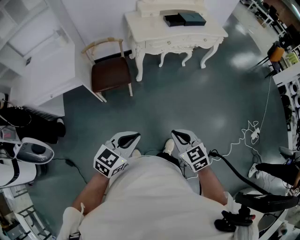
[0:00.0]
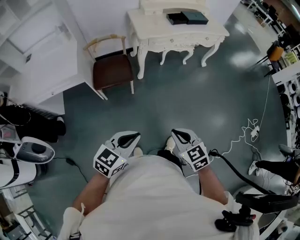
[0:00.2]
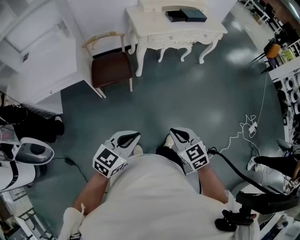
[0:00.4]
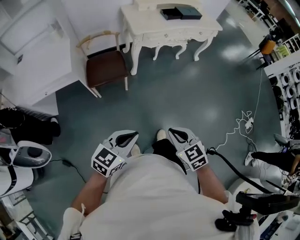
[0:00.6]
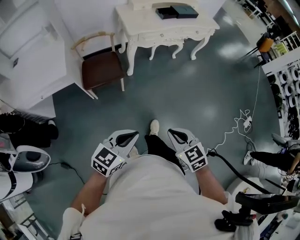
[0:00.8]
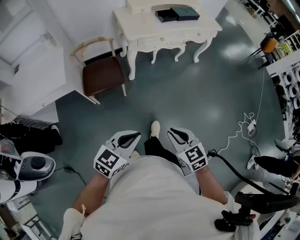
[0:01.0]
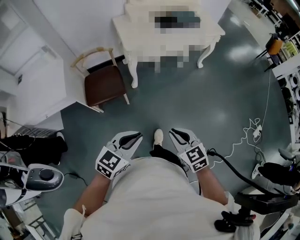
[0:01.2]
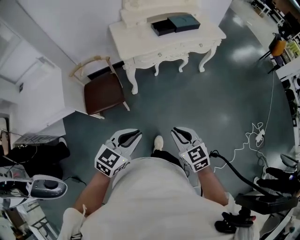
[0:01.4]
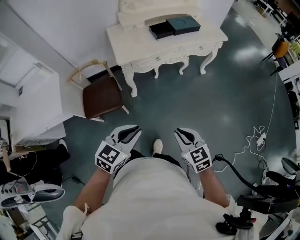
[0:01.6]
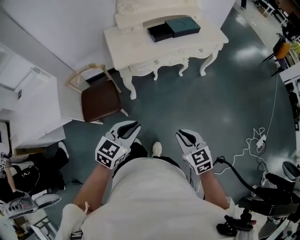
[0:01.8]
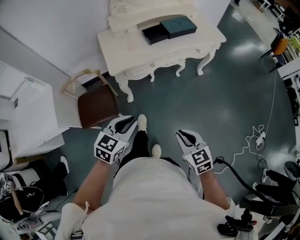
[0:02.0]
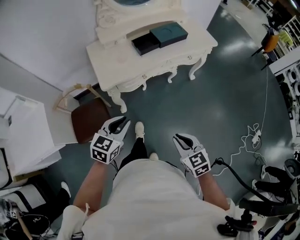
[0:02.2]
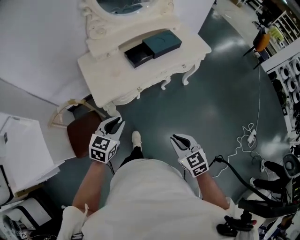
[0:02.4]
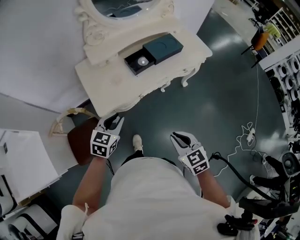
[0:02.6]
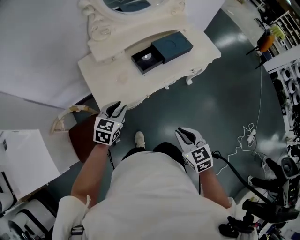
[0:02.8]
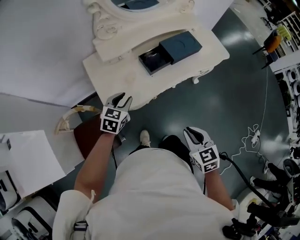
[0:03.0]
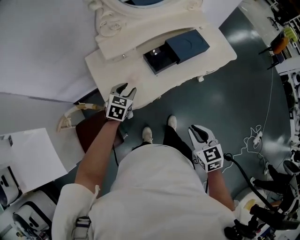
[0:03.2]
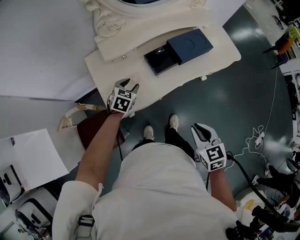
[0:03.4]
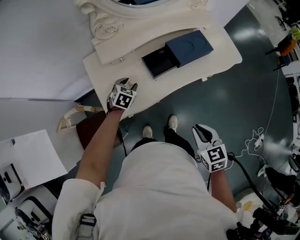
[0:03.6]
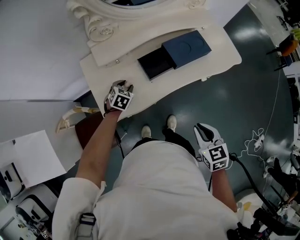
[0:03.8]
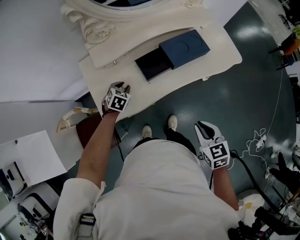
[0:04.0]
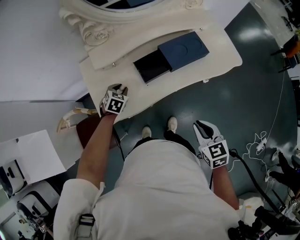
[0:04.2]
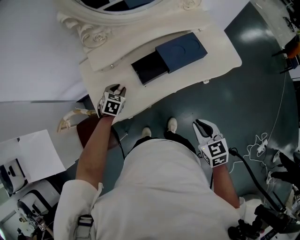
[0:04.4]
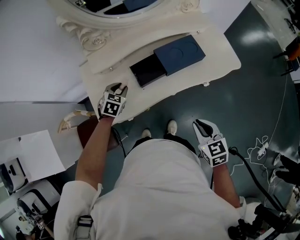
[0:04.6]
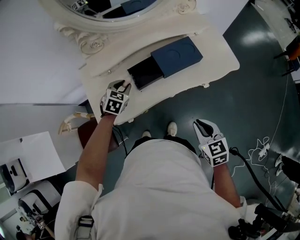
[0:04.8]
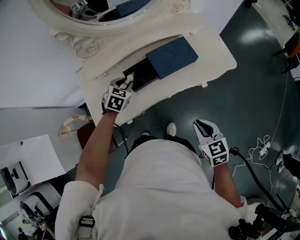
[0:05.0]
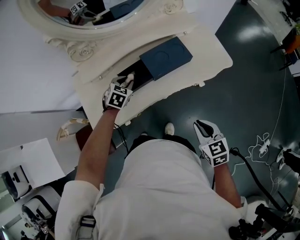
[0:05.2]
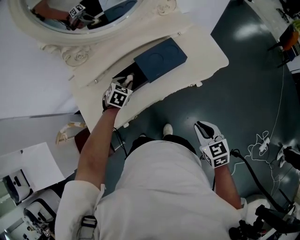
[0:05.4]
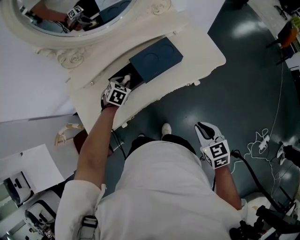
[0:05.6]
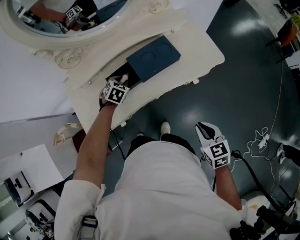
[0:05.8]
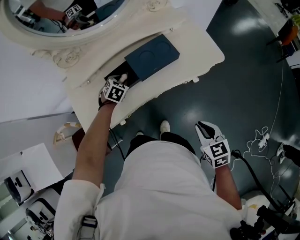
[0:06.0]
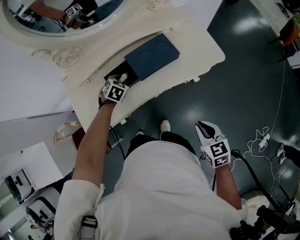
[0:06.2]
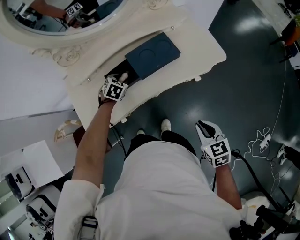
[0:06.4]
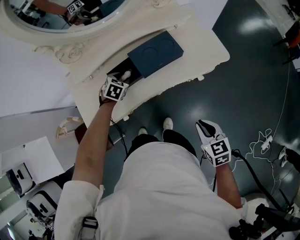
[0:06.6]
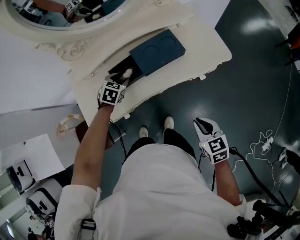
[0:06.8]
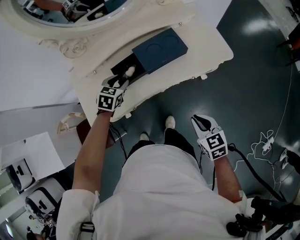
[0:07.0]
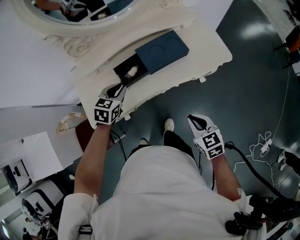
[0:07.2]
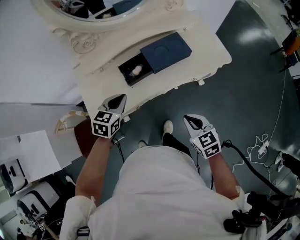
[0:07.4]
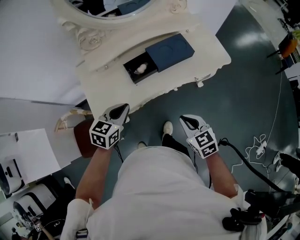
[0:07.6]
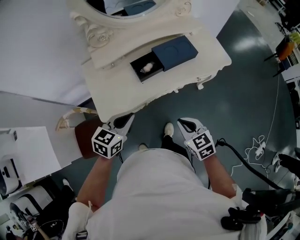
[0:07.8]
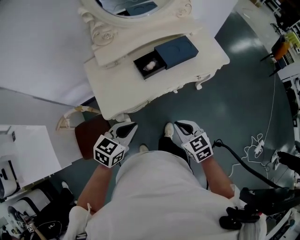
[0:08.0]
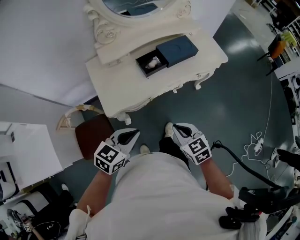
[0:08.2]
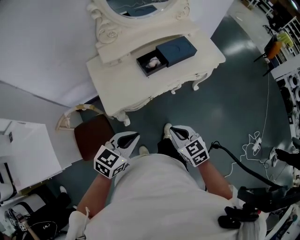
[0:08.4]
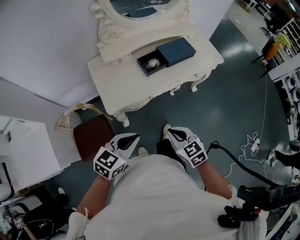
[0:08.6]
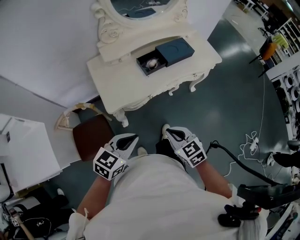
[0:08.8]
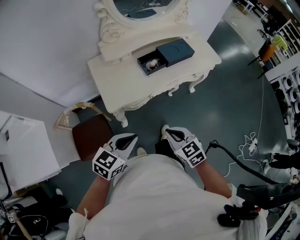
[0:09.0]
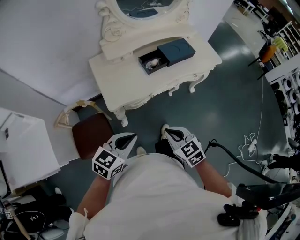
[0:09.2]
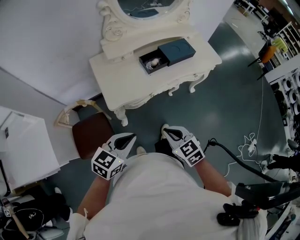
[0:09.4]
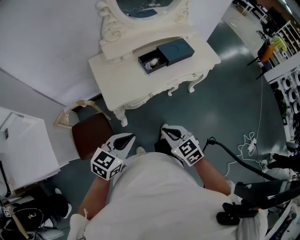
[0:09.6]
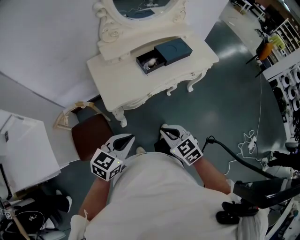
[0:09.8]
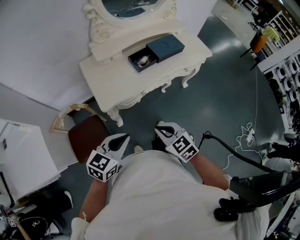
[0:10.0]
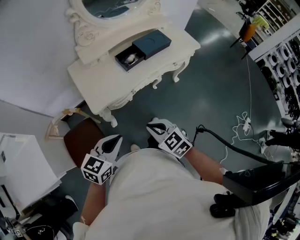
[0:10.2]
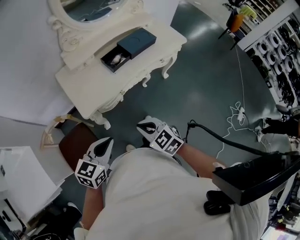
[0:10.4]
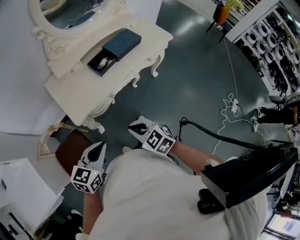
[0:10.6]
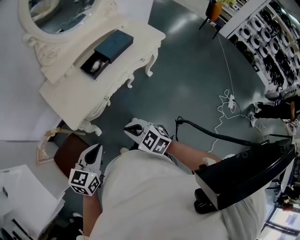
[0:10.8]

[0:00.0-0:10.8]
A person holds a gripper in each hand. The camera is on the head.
0:00.0 to 0:01.6: Both grippers travel together forward, about 30 cm.
0:01.6 to 0:03.0: The two grippers go roughly 50 cm forward.
0:03.0 to 0:04.6: The left gripper travels forward and to the right by some 15 cm; the right gripper travels to the right and forward by approximately 25 cm.
0:04.6 to 0:06.2: The right gripper heads to the right, covering approximately 15 cm; the left gripper goes about 15 cm to the right and forward.
0:06.2 to 0:07.8: The right gripper heads to the left, covering roughly 20 cm, while the left gripper heads backward and upward, covering roughly 35 cm, angles its fingers upward, by approximately 30 degrees, and closes up.
0:07.8 to 0:09.2: The right gripper shifts roughly 20 cm backward and to the left. Meanwhile the left gripper is displaced backward by approximately 20 cm.
0:09.2 to 0:10.8: The grippers move only a little.

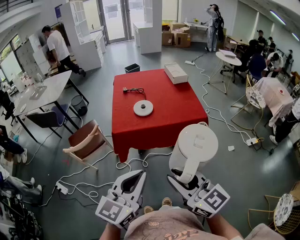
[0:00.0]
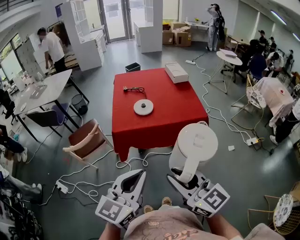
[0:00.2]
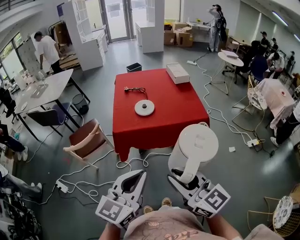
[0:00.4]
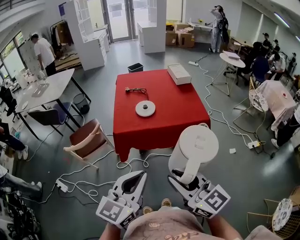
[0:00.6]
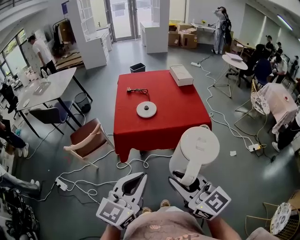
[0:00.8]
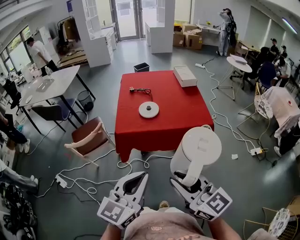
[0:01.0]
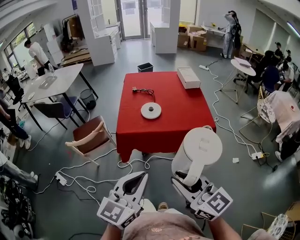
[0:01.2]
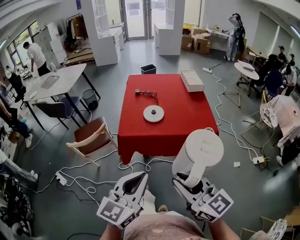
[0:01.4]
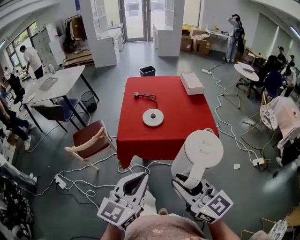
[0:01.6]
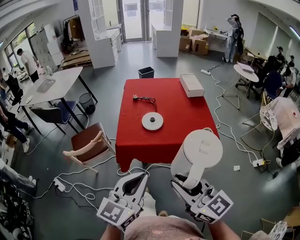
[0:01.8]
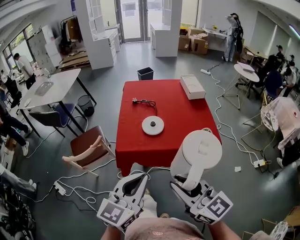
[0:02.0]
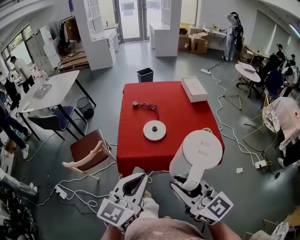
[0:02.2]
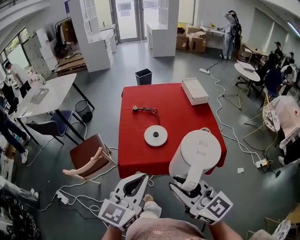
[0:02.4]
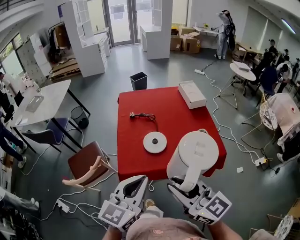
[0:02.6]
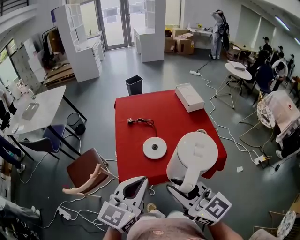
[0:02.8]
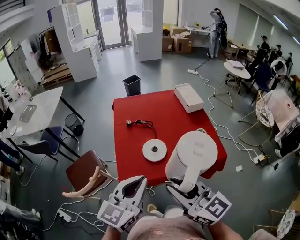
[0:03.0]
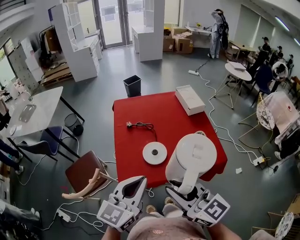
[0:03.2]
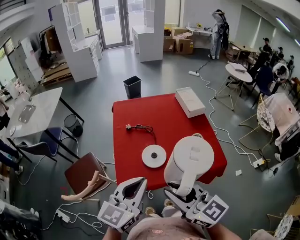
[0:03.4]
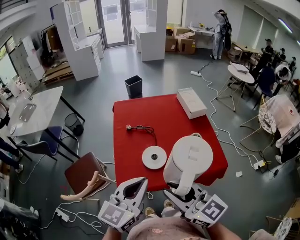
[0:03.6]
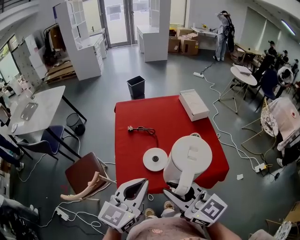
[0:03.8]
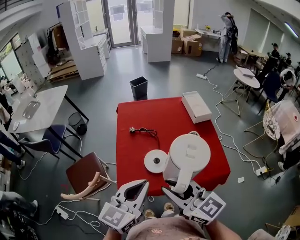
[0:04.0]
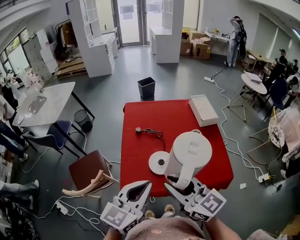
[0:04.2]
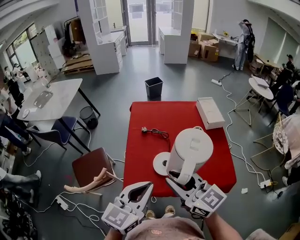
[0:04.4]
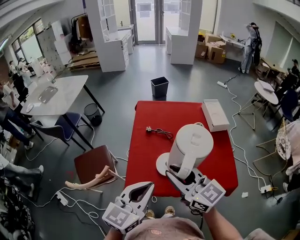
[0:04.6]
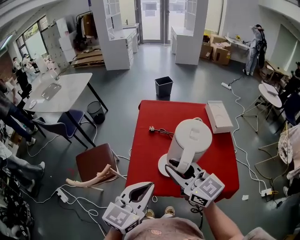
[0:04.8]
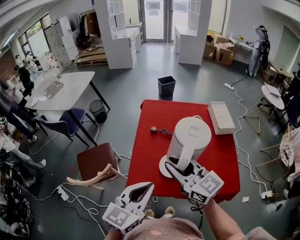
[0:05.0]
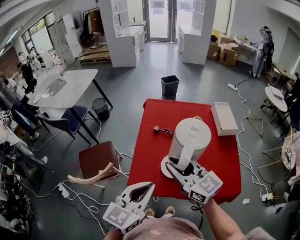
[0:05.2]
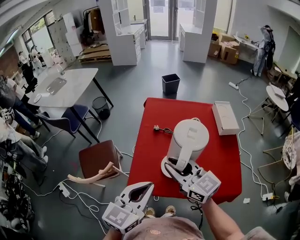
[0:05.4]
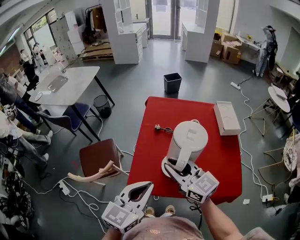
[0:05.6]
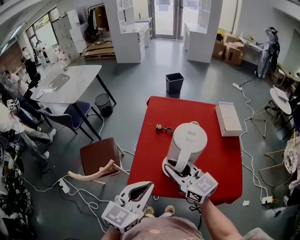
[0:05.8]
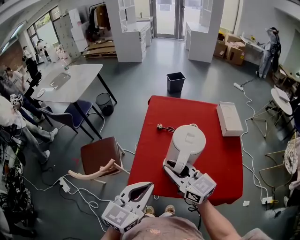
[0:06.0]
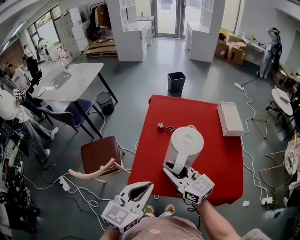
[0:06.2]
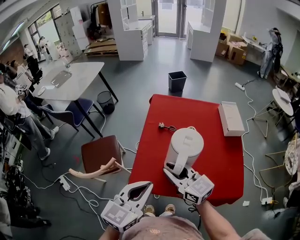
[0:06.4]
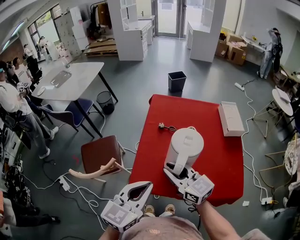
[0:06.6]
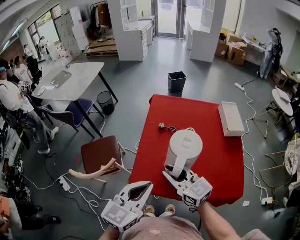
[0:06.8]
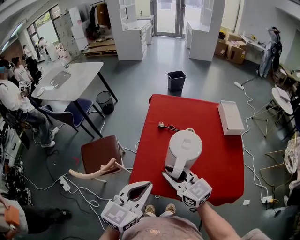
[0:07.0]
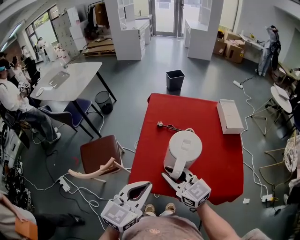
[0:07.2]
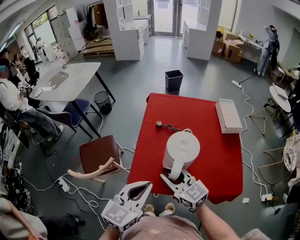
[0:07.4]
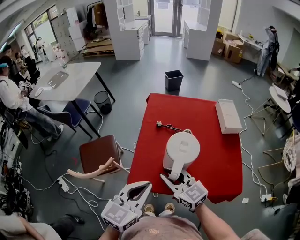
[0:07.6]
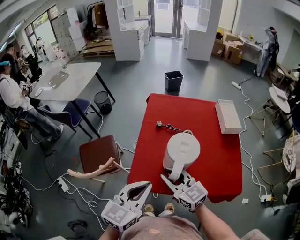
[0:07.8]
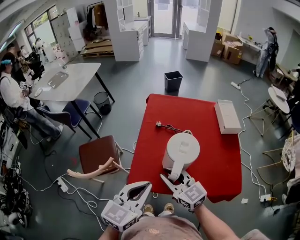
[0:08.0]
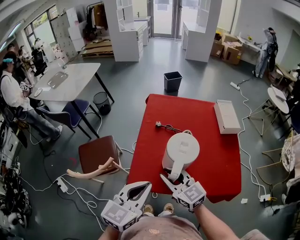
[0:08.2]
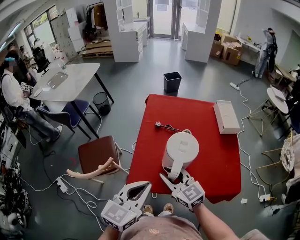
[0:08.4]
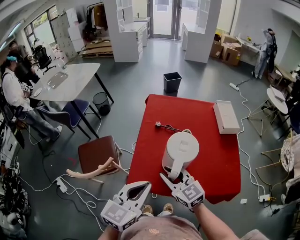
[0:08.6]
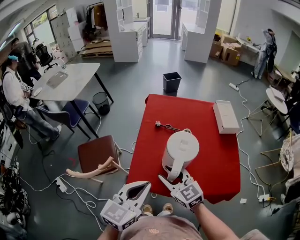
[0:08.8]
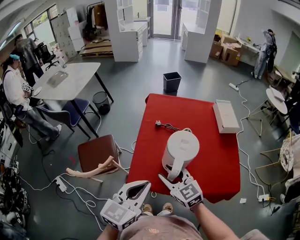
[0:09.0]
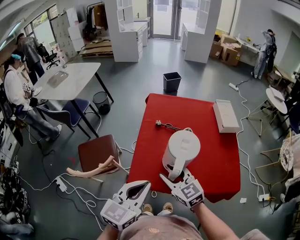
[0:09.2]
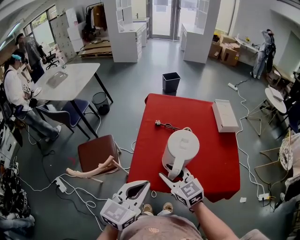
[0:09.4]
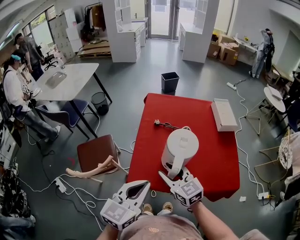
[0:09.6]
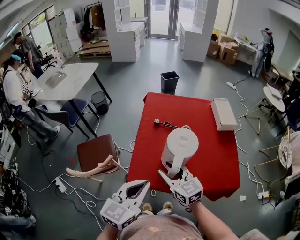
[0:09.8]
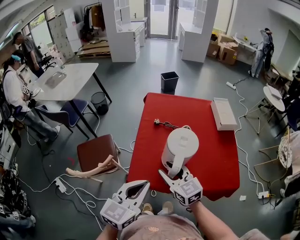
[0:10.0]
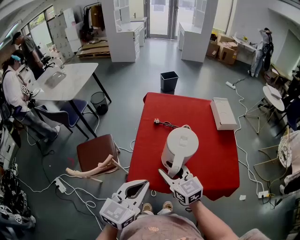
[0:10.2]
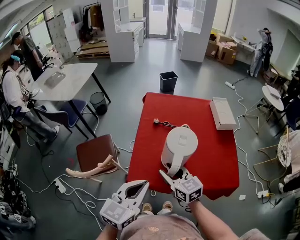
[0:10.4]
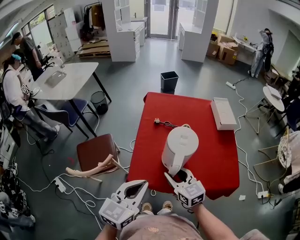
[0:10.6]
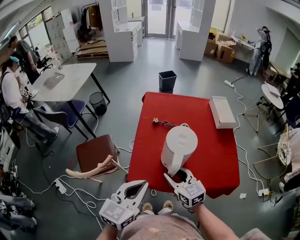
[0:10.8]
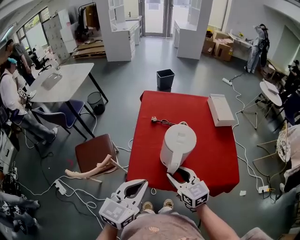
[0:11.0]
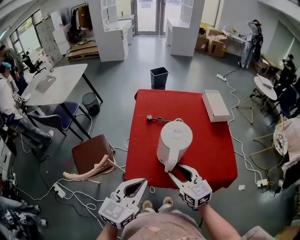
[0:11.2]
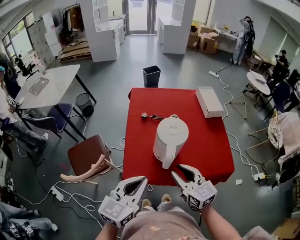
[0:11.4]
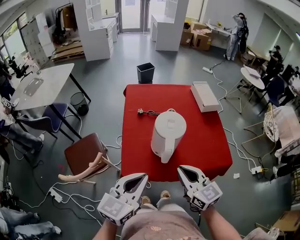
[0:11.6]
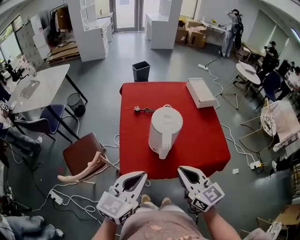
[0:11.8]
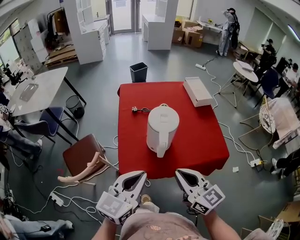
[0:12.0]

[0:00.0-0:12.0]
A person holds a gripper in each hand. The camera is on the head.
0:00.0 to 0:01.6: The grippers both shift forward by roughly 10 cm.
0:01.6 to 0:03.0: Both grippers move forward, roughly 25 cm.
0:03.0 to 0:04.4: The right gripper heads forward, covering about 10 cm. Meanwhile the left gripper heads forward, covering about 5 cm.
0:04.4 to 0:06.0: The right gripper travels forward and downward by approximately 10 cm.
0:06.0 to 0:07.6: The right gripper goes some 5 cm downward.
0:07.6 to 0:09.0: The right gripper opens.
0:09.0 to 0:10.4: The grippers move only a little.
0:10.4 to 0:12.0: The right gripper travels backward, upward and to the right by roughly 15 cm, and closes.

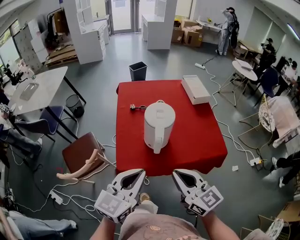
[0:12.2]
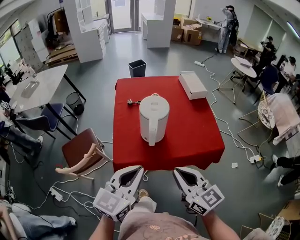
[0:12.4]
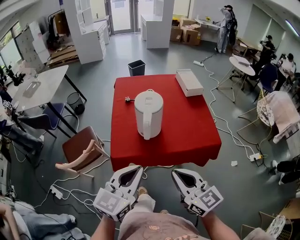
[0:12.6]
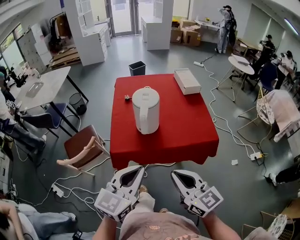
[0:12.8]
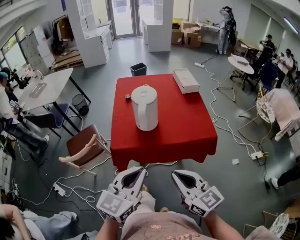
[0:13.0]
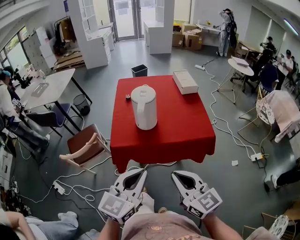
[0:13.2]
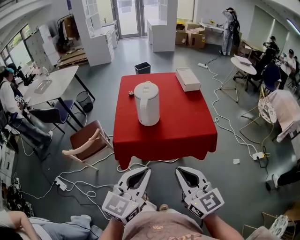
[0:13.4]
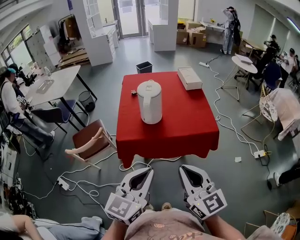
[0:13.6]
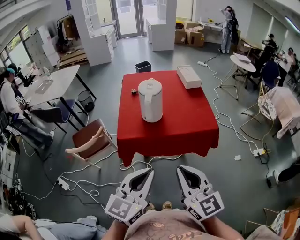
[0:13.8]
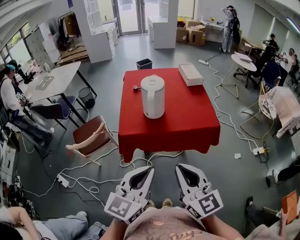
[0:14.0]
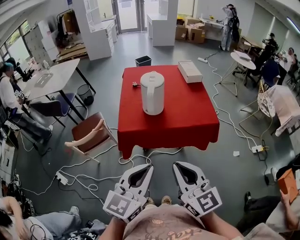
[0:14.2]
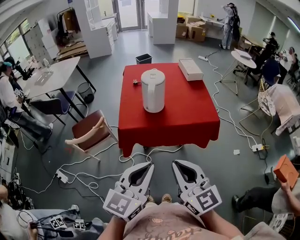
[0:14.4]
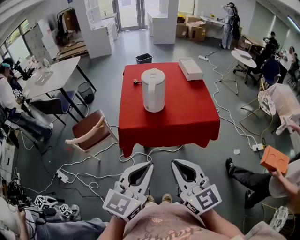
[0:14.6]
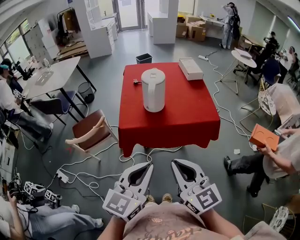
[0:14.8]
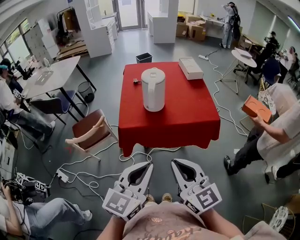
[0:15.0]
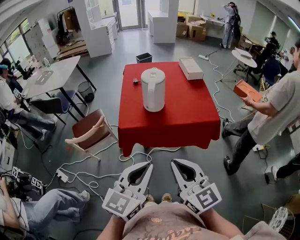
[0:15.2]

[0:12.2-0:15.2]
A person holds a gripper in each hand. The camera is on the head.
0:12.2 to 0:13.8: Both grippers move backward, roughly 20 cm.
0:13.8 to 0:15.2: The grippers move only a little.
